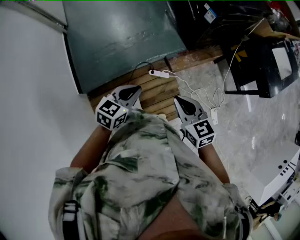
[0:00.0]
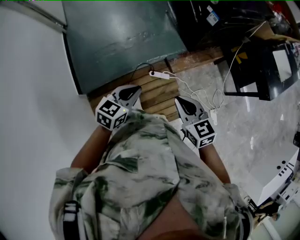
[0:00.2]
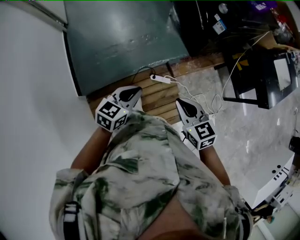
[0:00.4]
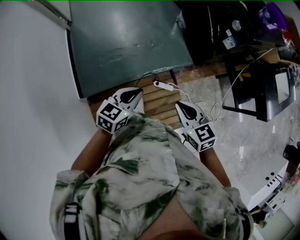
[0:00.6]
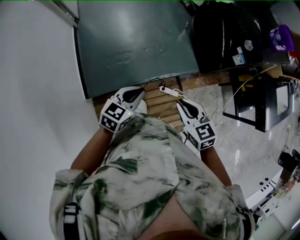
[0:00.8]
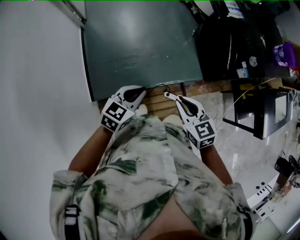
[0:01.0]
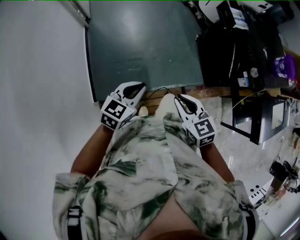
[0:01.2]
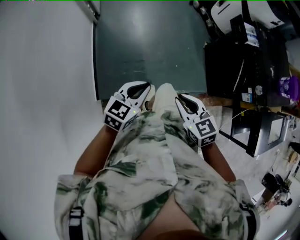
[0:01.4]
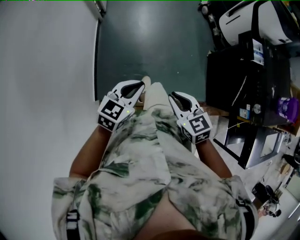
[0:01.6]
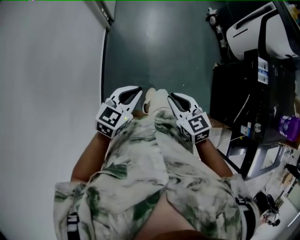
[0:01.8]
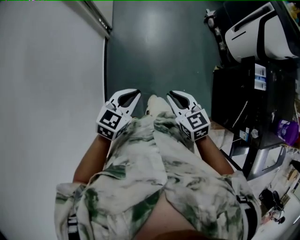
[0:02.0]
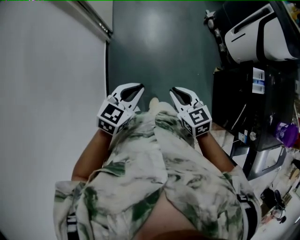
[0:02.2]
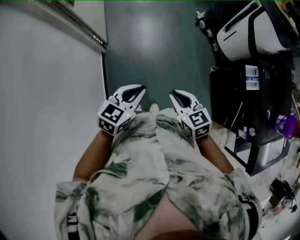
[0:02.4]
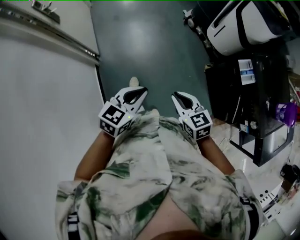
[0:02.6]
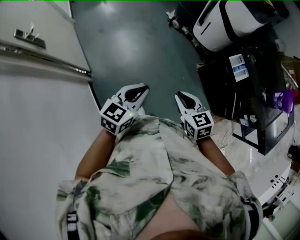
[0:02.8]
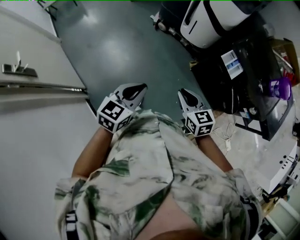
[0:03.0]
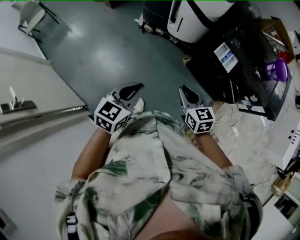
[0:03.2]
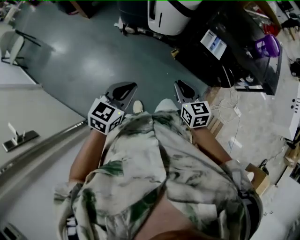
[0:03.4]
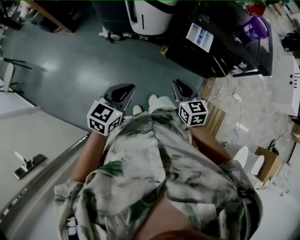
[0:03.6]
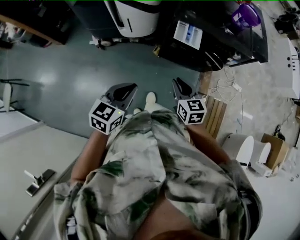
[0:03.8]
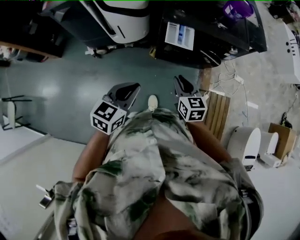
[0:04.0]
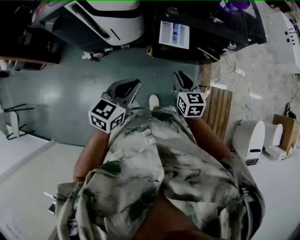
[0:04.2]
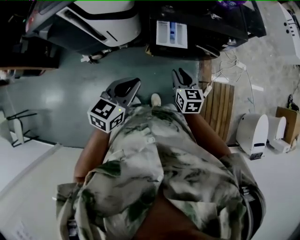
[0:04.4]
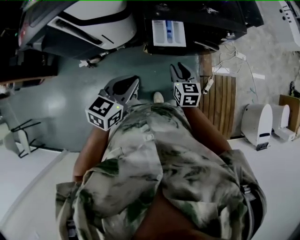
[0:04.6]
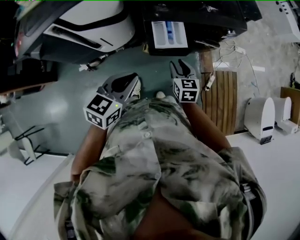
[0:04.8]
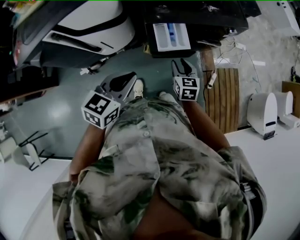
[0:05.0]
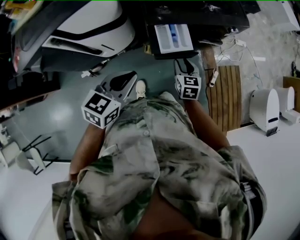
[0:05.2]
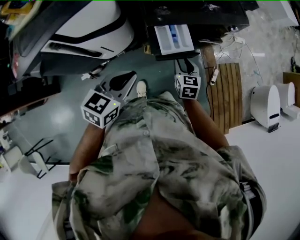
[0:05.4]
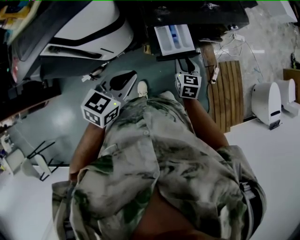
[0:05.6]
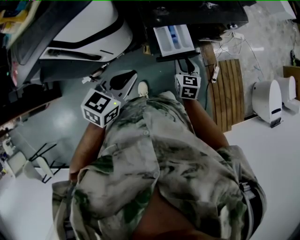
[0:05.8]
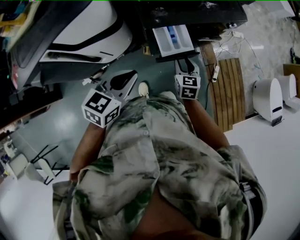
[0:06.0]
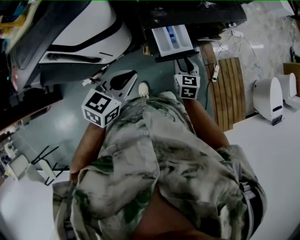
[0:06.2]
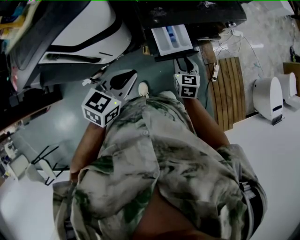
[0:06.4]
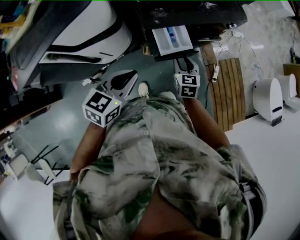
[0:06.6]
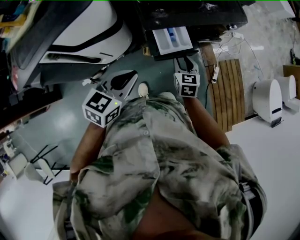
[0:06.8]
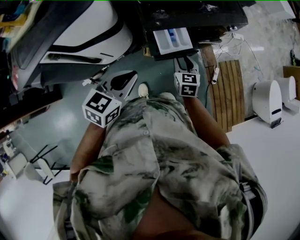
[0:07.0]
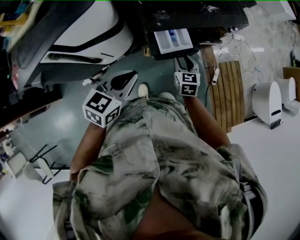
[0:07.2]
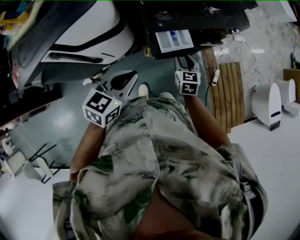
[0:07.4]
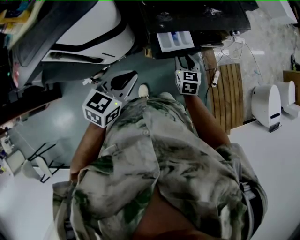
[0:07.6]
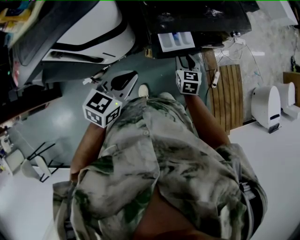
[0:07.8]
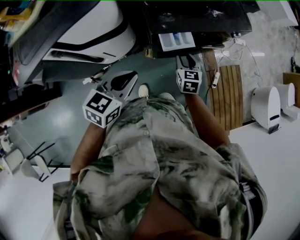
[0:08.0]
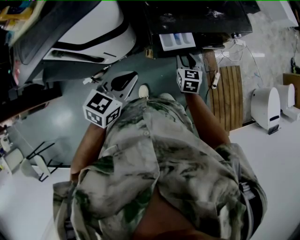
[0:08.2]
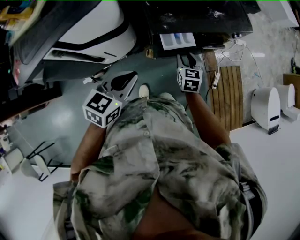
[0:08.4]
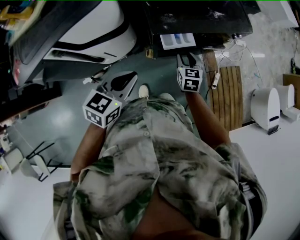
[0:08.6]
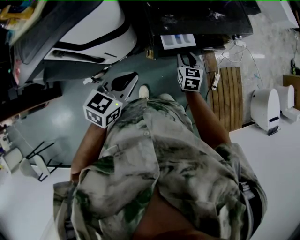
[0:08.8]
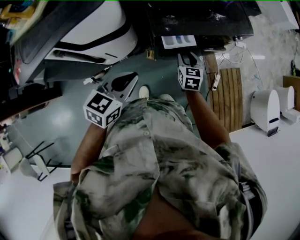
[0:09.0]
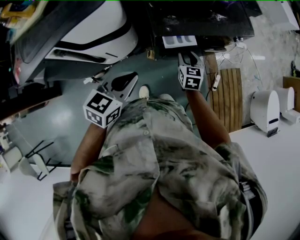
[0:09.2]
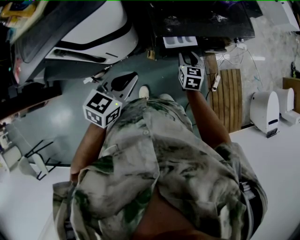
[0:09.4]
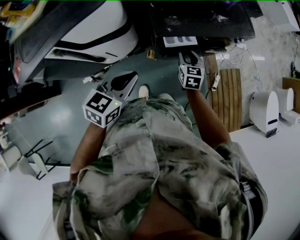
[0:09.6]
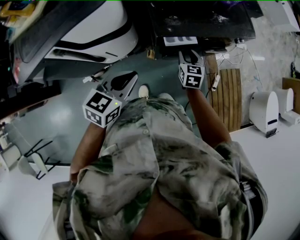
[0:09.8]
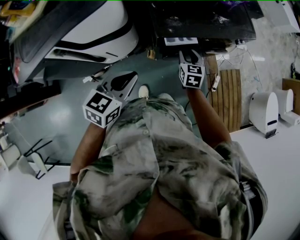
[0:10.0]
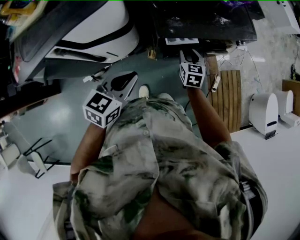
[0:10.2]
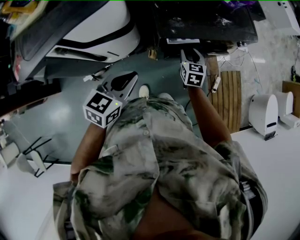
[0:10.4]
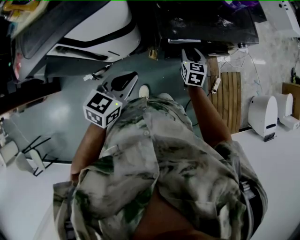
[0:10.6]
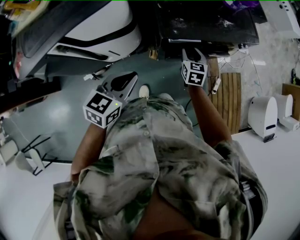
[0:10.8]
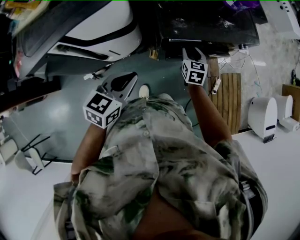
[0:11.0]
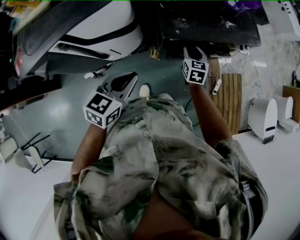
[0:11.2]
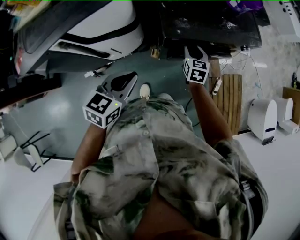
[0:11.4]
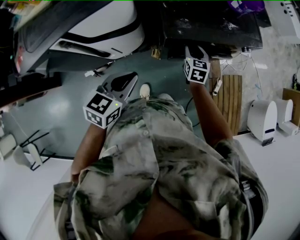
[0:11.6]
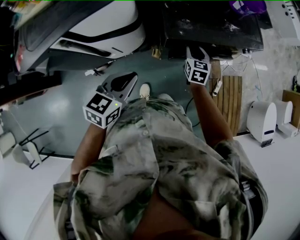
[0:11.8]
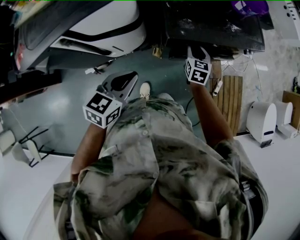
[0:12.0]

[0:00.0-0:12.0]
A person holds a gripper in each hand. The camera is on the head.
0.0 to 1.6 s: Both grippers are carried to the left and forward, approximately 60 cm. The left gripper changes its angle by roughly 20 degrees; the right gripper swivels some 30 degrees.
1.6 to 3.0 s: The pair of grippers is taken about 50 cm. The right gripper turns by roughly 50 degrees. The left gripper swivels roughly 30 degrees.
3.0 to 4.4 s: The left gripper moves roughly 35 cm, and swivels about 50 degrees. The right gripper shifts by approximately 30 cm, and turns by roughly 60 degrees.
4.4 to 6.0 s: The right gripper travels forward, to the left and downward by some 15 cm, and rotates some 20 degrees. Meanwhile the left gripper goes approximately 20 cm forward and to the left, and turns by roughly 20 degrees.
6.0 to 7.6 s: The grippers move only a little.
7.6 to 9.0 s: There are only small adjustments of the grippers.
9.0 to 10.4 s: There are only small adjustments of the grippers.
10.4 to 12.0 s: The grippers stay close to where they were, moving slightly.

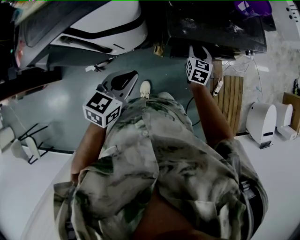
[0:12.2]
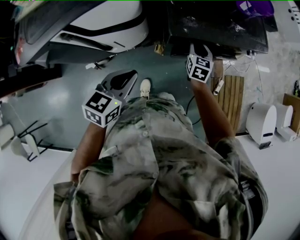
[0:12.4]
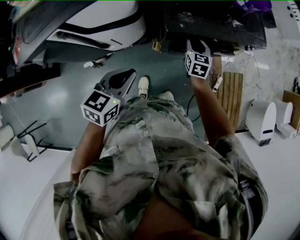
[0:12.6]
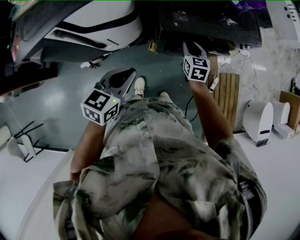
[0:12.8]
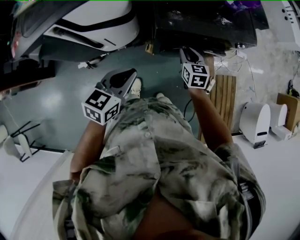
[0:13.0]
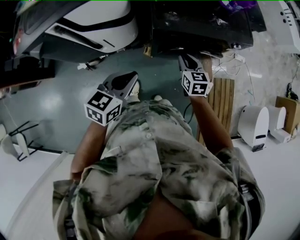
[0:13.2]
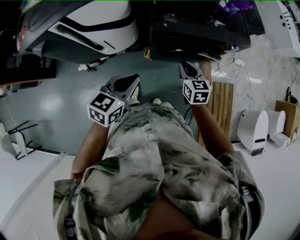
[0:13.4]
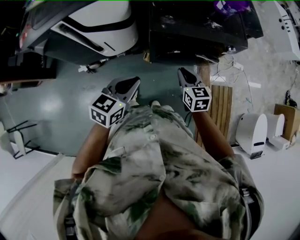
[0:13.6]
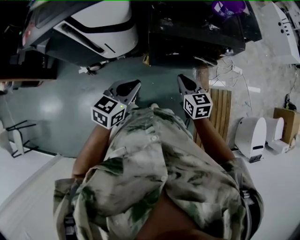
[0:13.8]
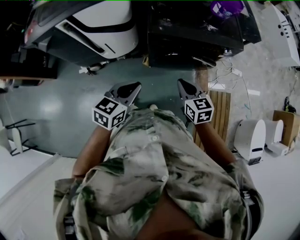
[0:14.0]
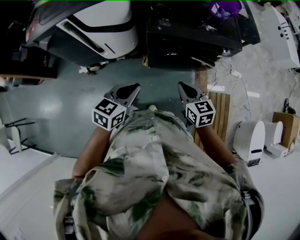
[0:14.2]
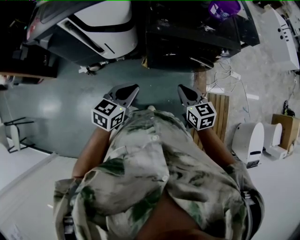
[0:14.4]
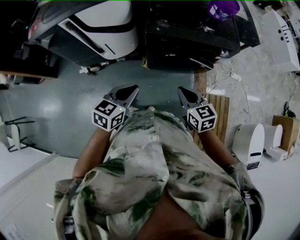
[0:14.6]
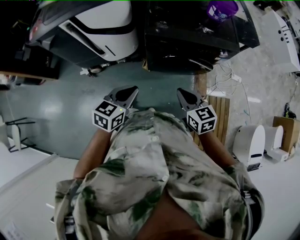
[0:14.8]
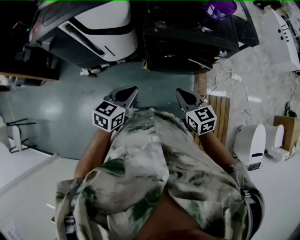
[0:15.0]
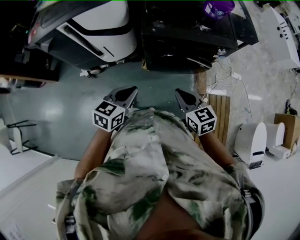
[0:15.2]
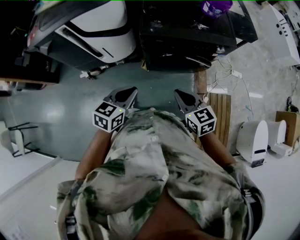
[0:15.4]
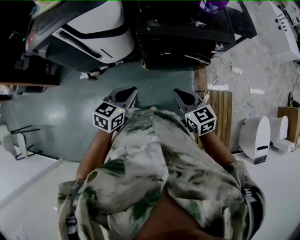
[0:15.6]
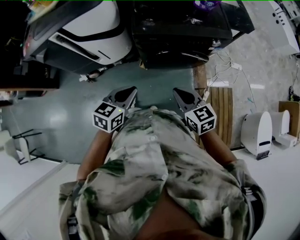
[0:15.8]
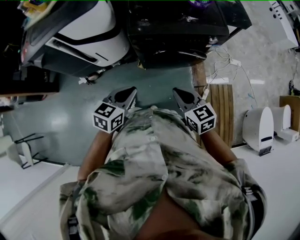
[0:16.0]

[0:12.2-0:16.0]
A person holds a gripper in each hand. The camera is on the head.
12.2 to 13.4 s: The right gripper shifts roughly 15 cm backward, to the right and upward, and changes its angle by about 20 degrees. The left gripper heads to the right and backward, covering roughly 15 cm.
13.4 to 14.8 s: The right gripper shifts approximately 15 cm backward and upward, while the left gripper heads backward and to the right, covering approximately 10 cm.
14.8 to 16.0 s: There are only small adjustments of the grippers.

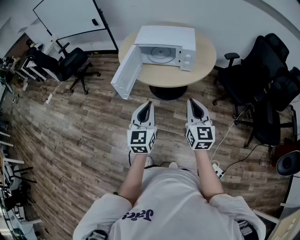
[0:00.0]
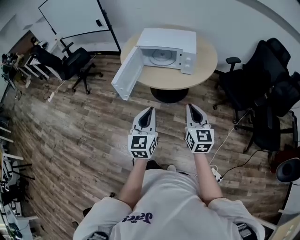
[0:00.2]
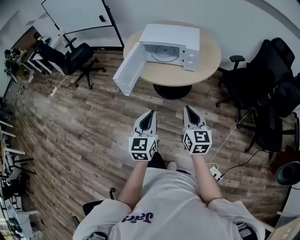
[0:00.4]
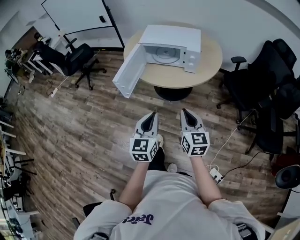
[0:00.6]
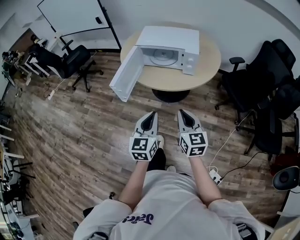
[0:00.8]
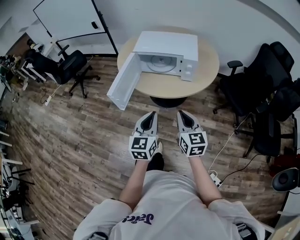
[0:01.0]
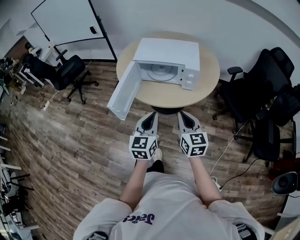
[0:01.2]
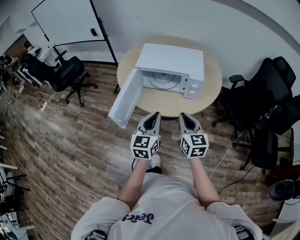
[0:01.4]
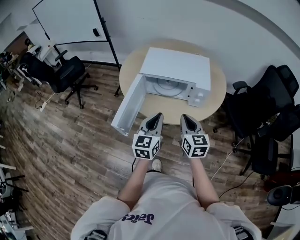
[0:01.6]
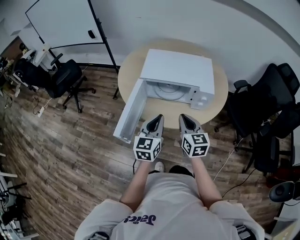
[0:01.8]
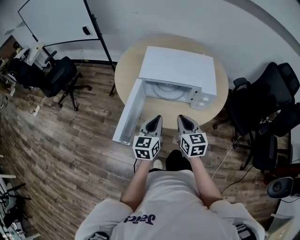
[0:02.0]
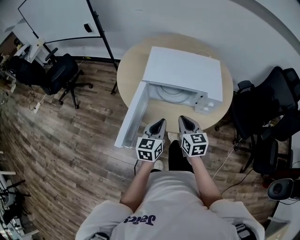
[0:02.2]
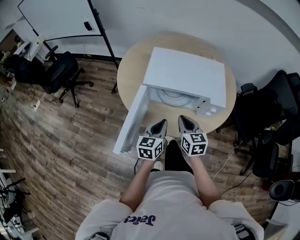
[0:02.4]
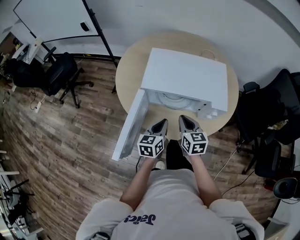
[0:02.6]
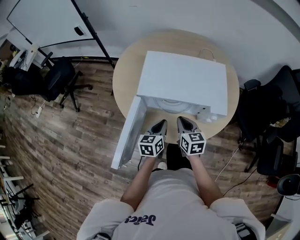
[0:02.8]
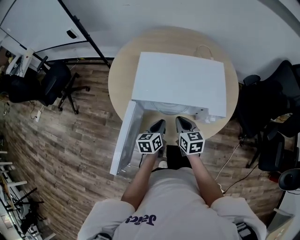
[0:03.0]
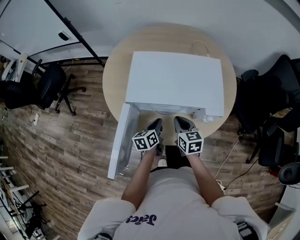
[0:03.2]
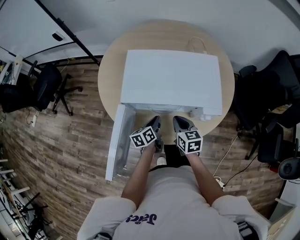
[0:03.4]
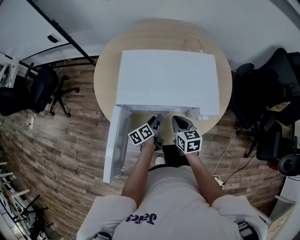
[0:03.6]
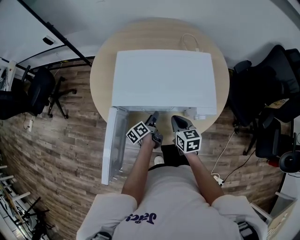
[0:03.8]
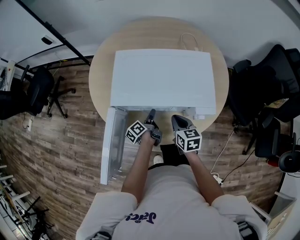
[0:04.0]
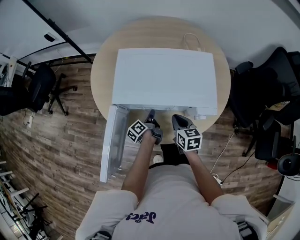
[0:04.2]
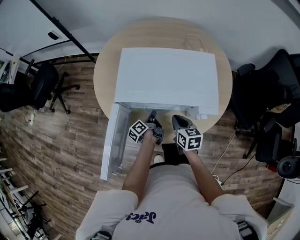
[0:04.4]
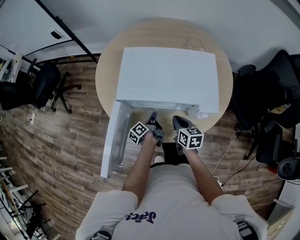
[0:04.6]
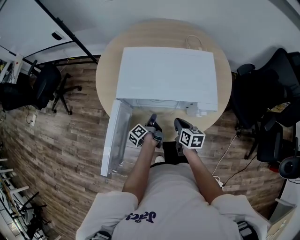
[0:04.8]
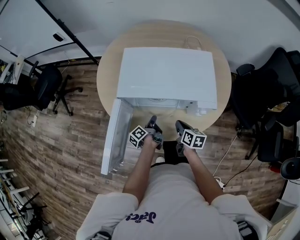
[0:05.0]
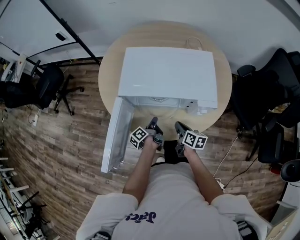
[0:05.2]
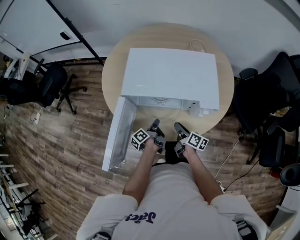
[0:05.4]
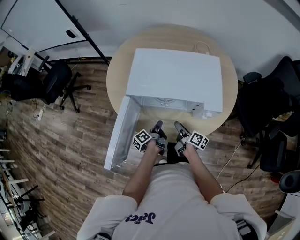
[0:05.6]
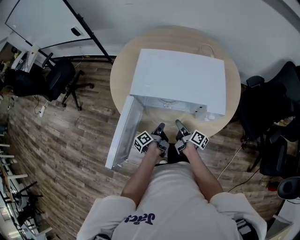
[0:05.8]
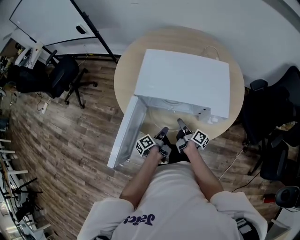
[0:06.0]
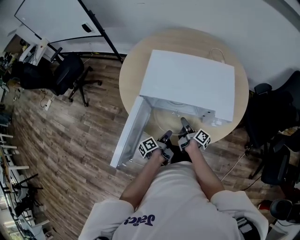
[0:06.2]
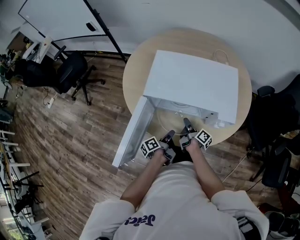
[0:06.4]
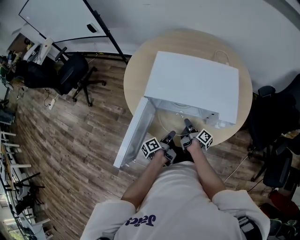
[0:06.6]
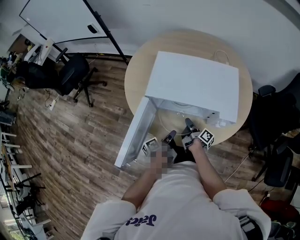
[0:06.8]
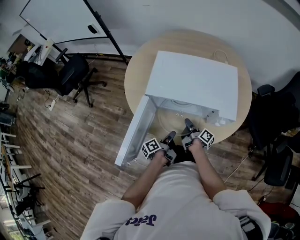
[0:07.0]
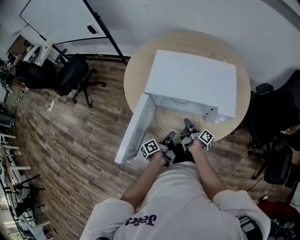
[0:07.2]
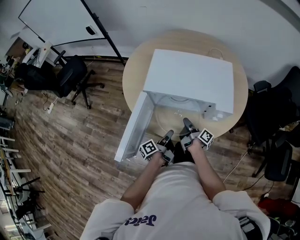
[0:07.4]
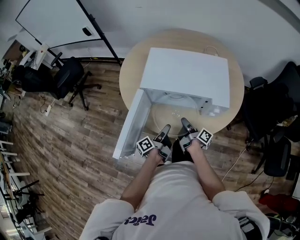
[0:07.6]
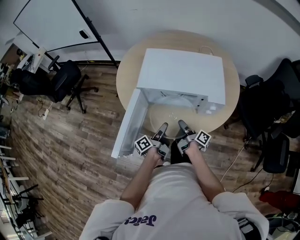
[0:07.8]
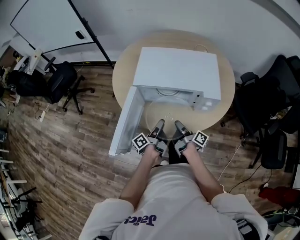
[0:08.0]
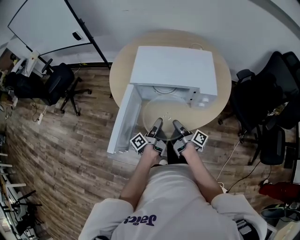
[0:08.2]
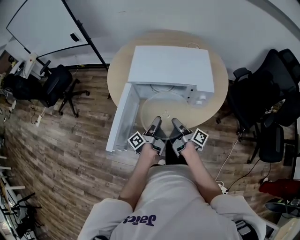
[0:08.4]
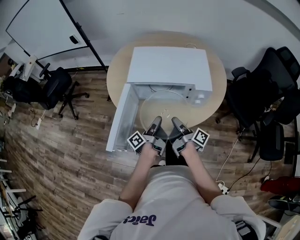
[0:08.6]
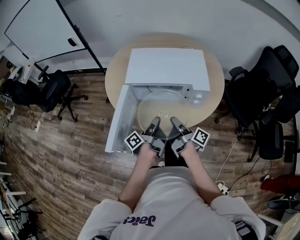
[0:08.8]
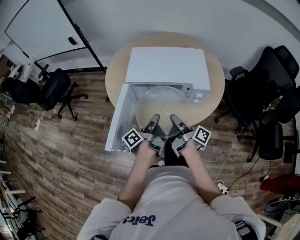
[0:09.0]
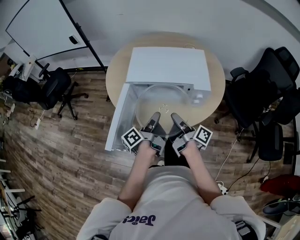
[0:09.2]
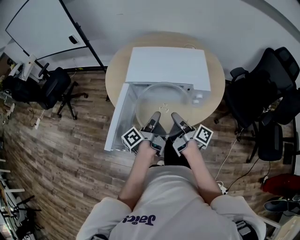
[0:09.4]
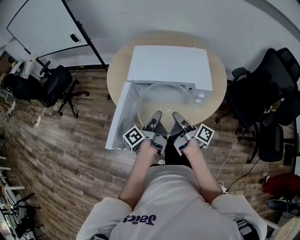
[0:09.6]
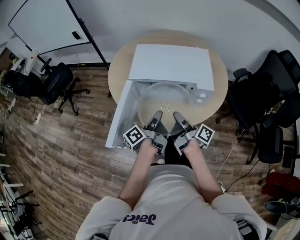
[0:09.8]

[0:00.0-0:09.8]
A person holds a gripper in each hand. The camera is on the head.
0.0 to 1.4 s: The right gripper changes place by approximately 20 cm.
1.4 to 2.8 s: The right gripper moves some 30 cm.
2.8 to 4.2 s: The right gripper ends up approximately 10 cm from where it was.
4.2 to 5.6 s: The right gripper goes roughly 10 cm downward, rotates around the line of its fingers by roughly 50 degrees, clockwise from behind, and opens.
5.6 to 7.0 s: The right gripper changes place by about 5 cm, and closes up.
7.0 to 8.4 s: The right gripper moves approximately 15 cm.
8.4 to 9.8 s: The right gripper is displaced upward by roughly 10 cm.
